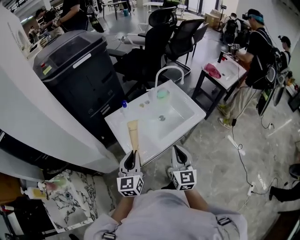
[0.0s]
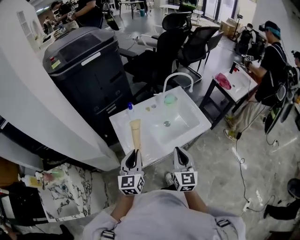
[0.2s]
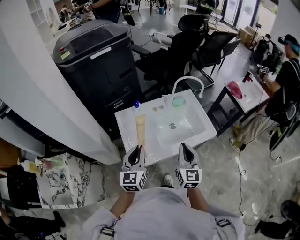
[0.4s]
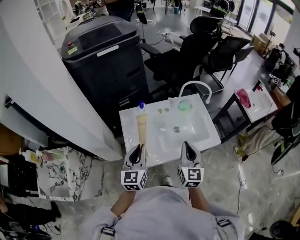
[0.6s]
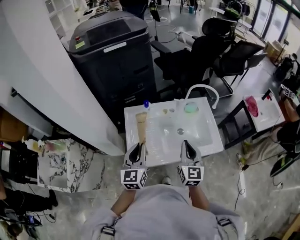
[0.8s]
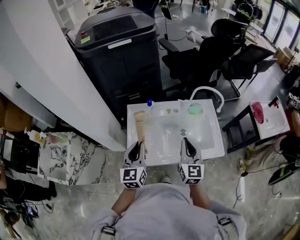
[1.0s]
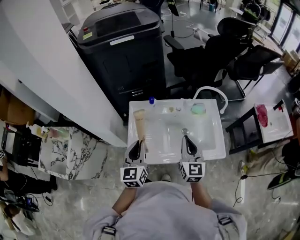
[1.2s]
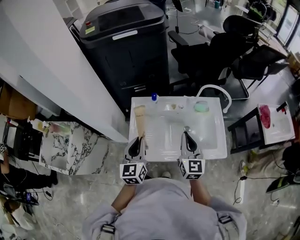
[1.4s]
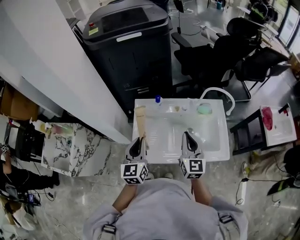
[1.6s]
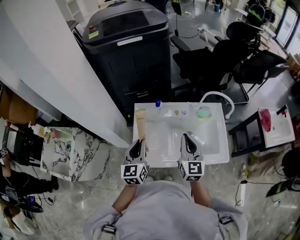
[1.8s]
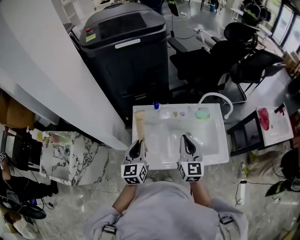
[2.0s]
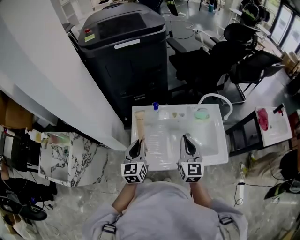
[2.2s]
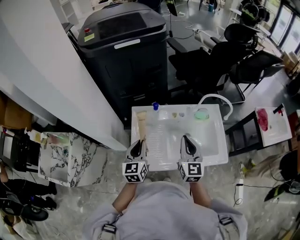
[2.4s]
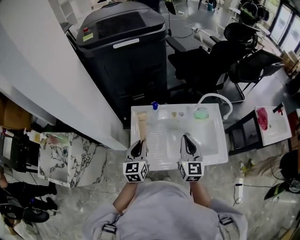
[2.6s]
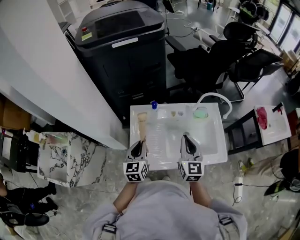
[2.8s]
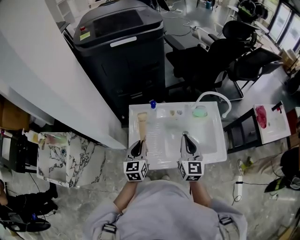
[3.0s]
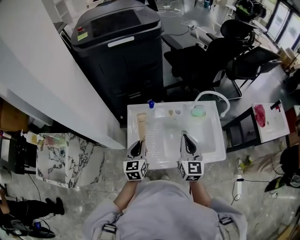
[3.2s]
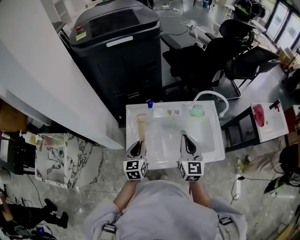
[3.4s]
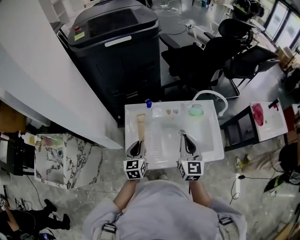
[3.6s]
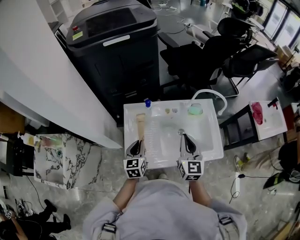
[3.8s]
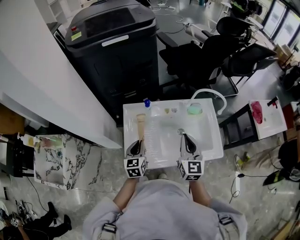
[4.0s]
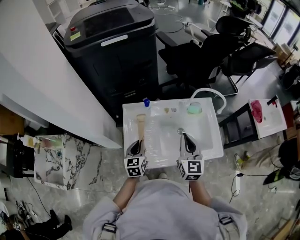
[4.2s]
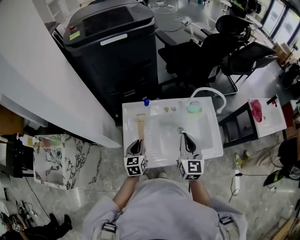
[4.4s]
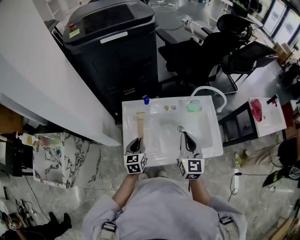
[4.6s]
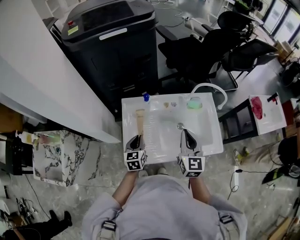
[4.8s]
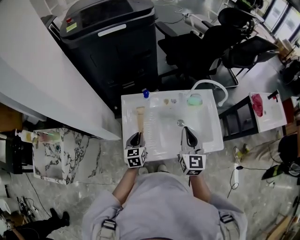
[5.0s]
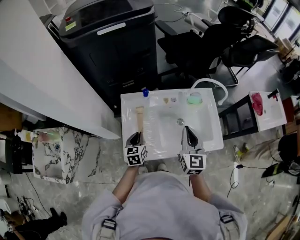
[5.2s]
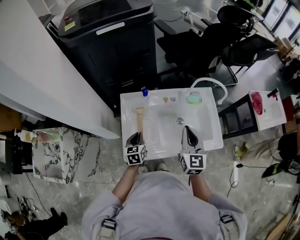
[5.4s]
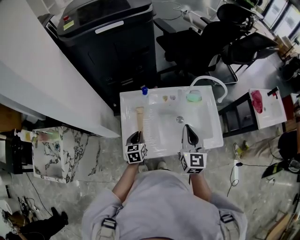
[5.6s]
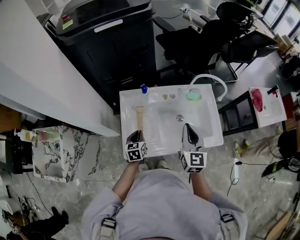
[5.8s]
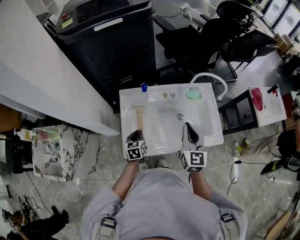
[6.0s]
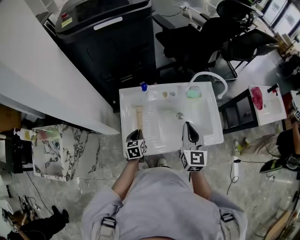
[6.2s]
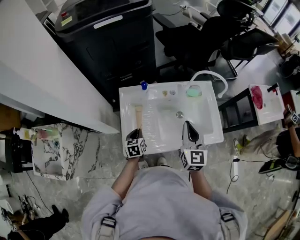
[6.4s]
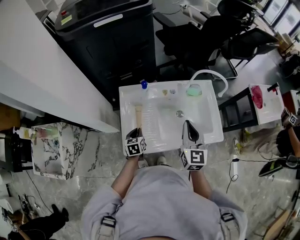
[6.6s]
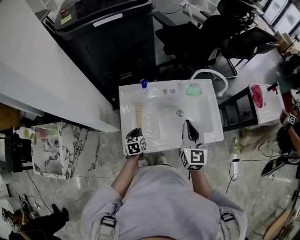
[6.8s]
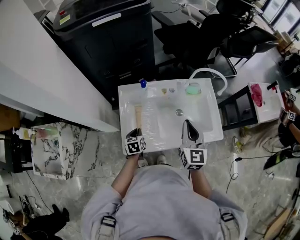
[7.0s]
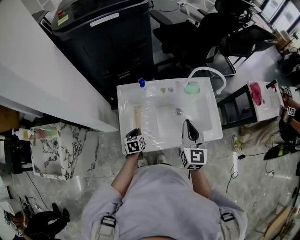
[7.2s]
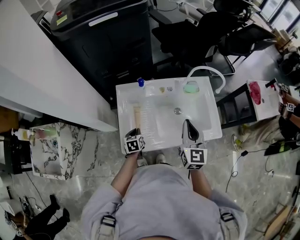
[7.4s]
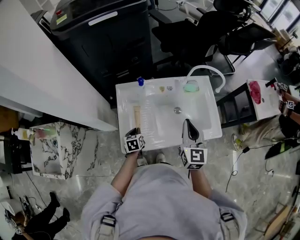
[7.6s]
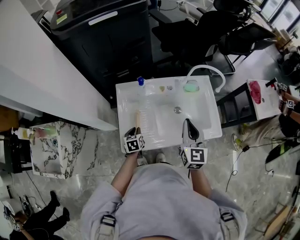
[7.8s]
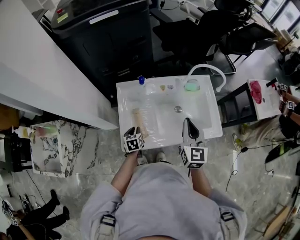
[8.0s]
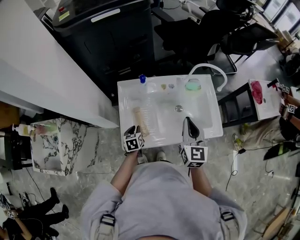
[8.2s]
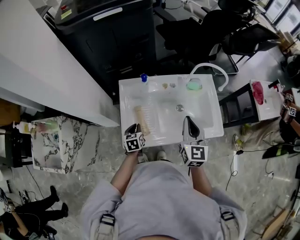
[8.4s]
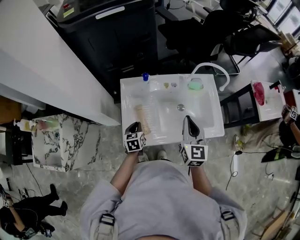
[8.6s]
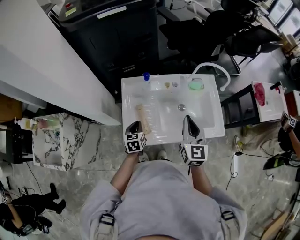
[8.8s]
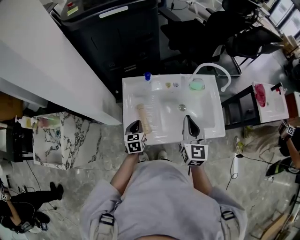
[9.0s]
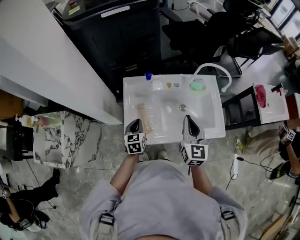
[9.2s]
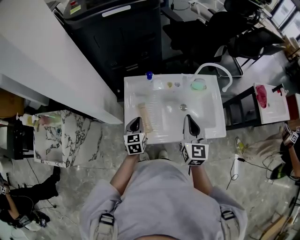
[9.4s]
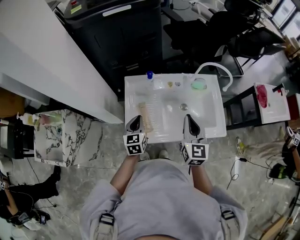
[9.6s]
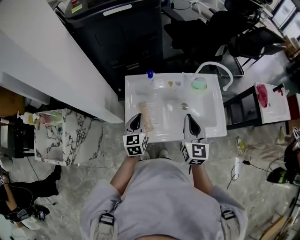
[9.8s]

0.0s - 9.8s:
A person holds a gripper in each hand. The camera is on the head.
0.0s - 1.4s: The left gripper shifts by some 10 cm, and turns by about 30 degrees. The right gripper shifts by about 20 cm, and rotates approximately 30 degrees.
1.4s - 2.8s: The left gripper is displaced downward and forward by roughly 10 cm.
2.8s - 4.2s: The left gripper travels downward by about 5 cm.
4.2s - 5.6s: The left gripper heads downward, covering about 5 cm.
5.6s - 7.0s: The left gripper heads downward, covering roughly 5 cm.
7.0s - 8.4s: The grippers stay close to where they were, moving slightly.
8.4s - 9.8s: The left gripper goes some 15 cm upward, and changes its angle by about 20 degrees.

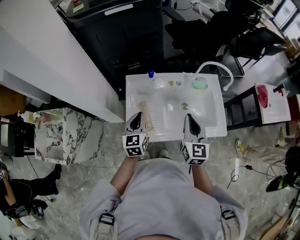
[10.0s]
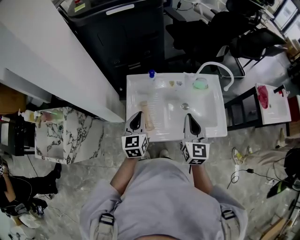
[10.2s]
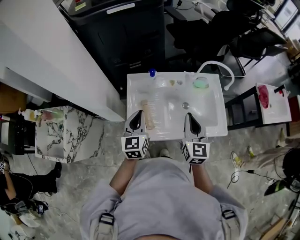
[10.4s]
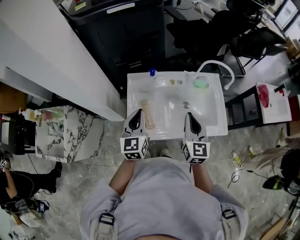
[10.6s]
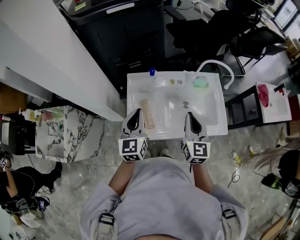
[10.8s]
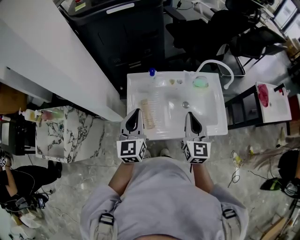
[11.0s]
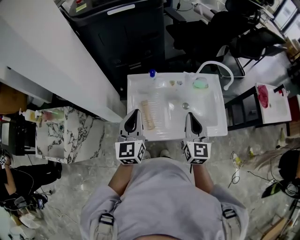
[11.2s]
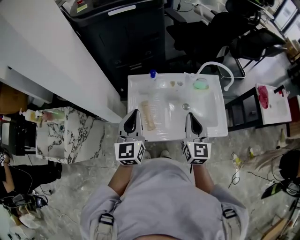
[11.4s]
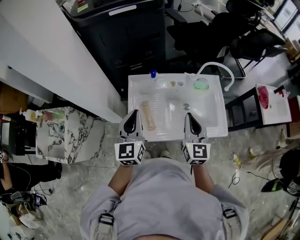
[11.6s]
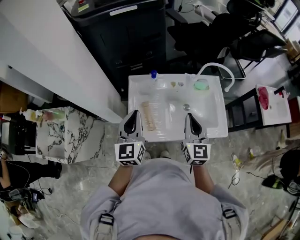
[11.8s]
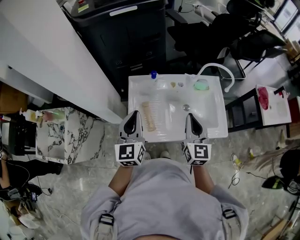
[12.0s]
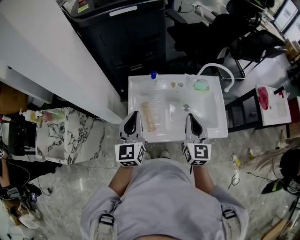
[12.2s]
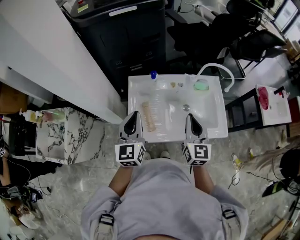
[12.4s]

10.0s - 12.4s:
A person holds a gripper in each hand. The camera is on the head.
10.0s - 11.2s: The left gripper is displaced upward by roughly 10 cm.
11.2s - 12.4s: Both grippers stay put.

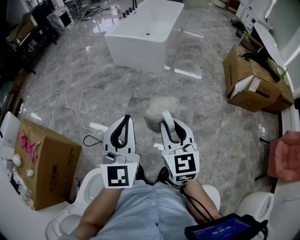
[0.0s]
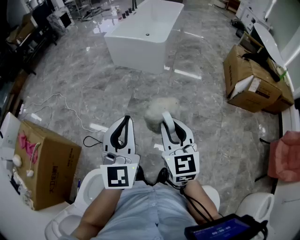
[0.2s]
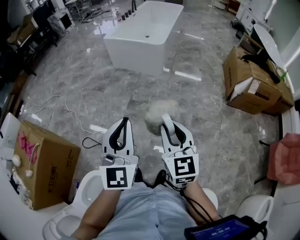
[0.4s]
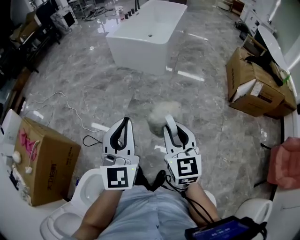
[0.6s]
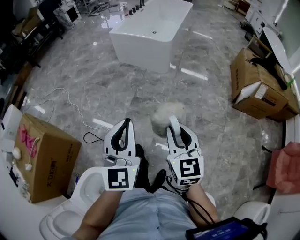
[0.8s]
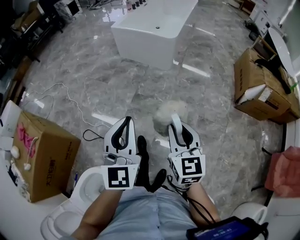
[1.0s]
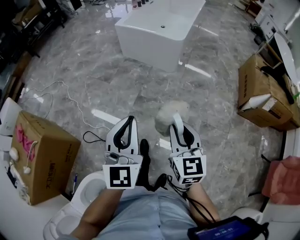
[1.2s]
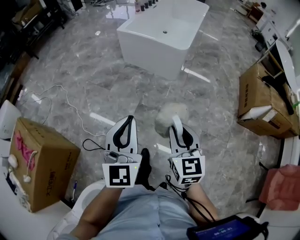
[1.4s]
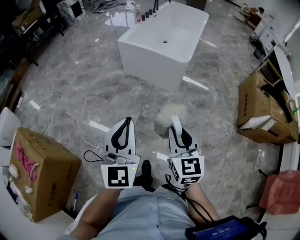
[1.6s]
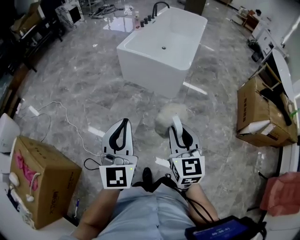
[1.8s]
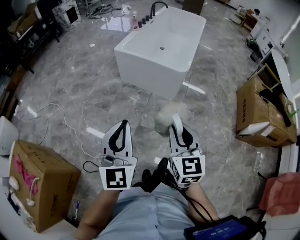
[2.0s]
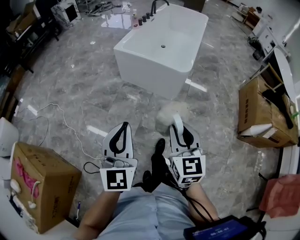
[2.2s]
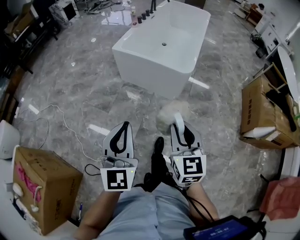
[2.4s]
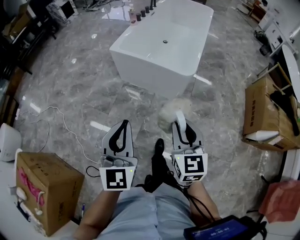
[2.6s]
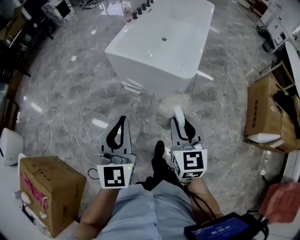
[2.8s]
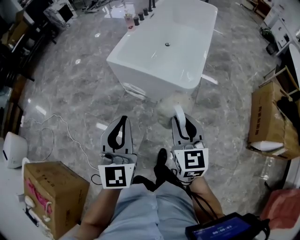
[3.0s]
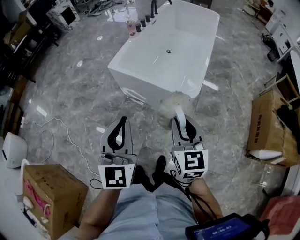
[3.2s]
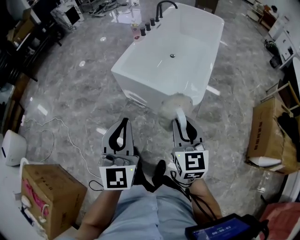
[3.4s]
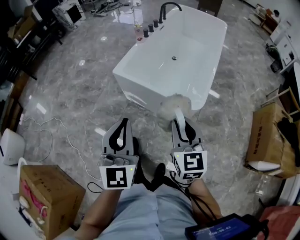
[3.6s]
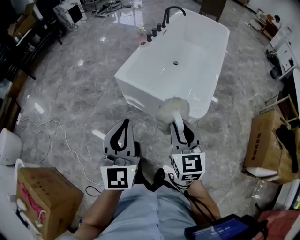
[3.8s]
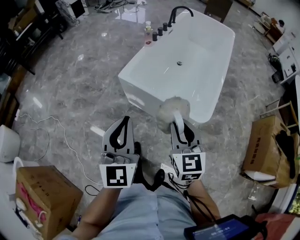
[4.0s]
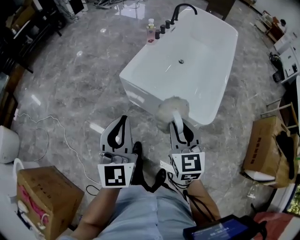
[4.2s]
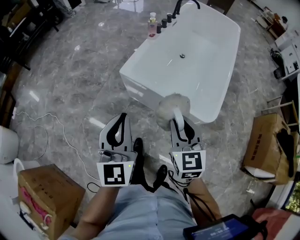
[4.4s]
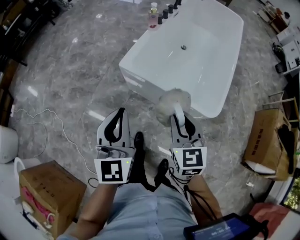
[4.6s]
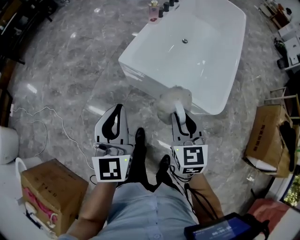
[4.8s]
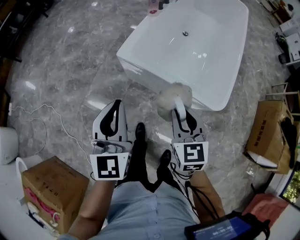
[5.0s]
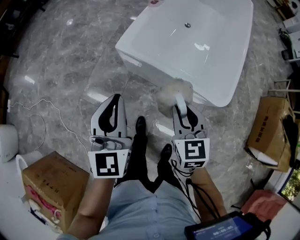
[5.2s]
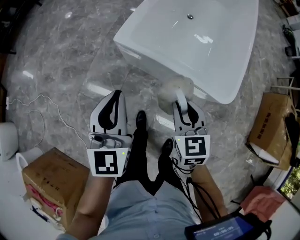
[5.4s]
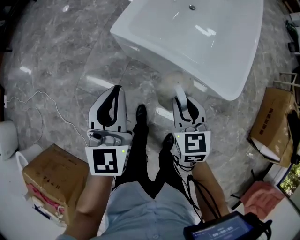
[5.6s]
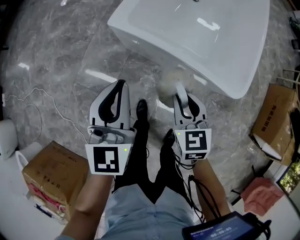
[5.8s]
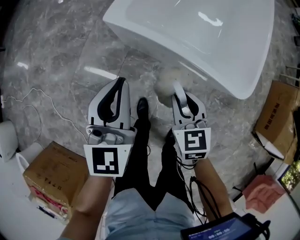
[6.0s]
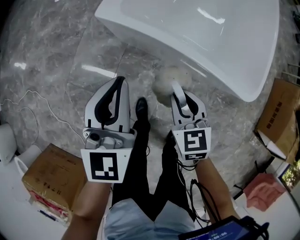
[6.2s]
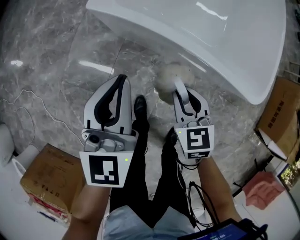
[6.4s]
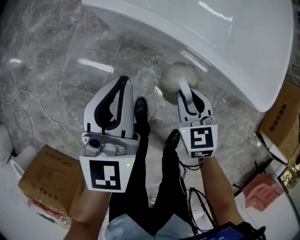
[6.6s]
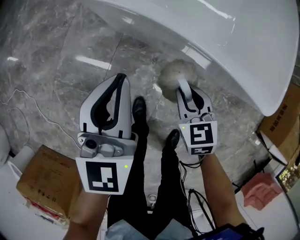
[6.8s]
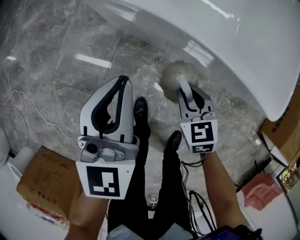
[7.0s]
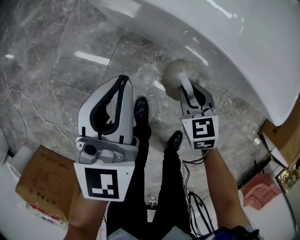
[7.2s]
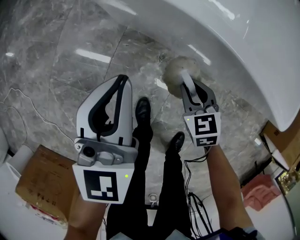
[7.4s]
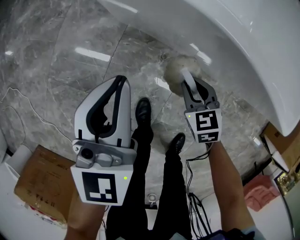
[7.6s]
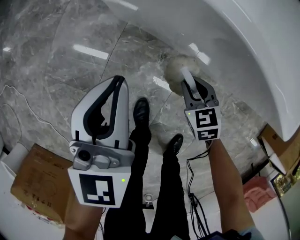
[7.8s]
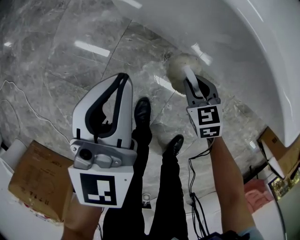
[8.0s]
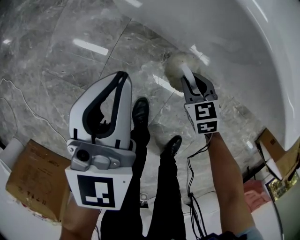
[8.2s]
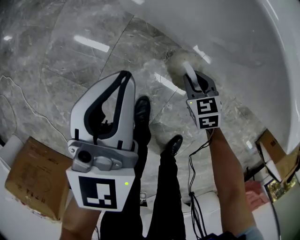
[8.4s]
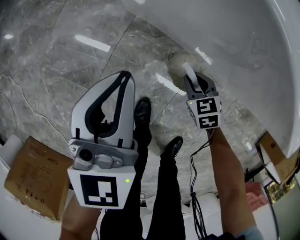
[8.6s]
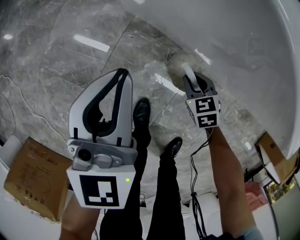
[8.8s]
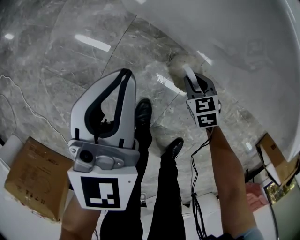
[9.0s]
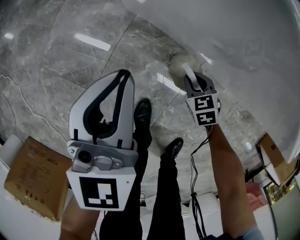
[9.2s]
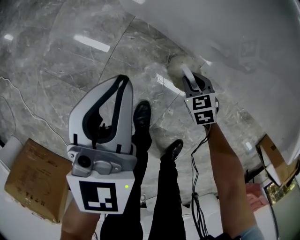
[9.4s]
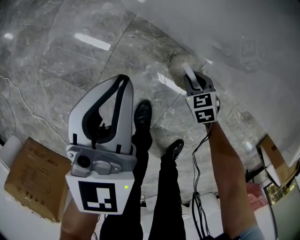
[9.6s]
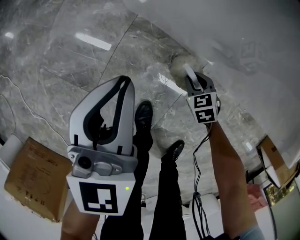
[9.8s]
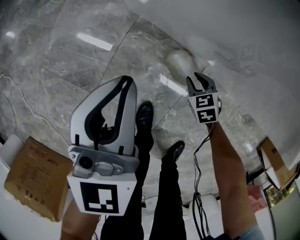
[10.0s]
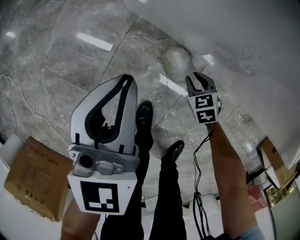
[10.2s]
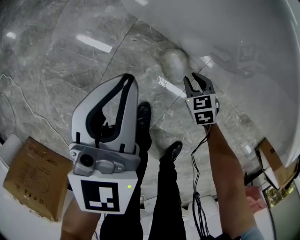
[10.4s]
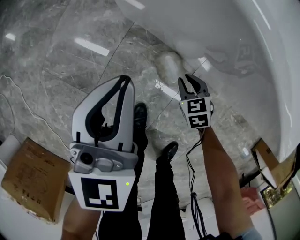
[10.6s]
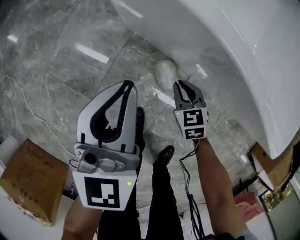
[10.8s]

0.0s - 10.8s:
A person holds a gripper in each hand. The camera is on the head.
0.0s - 1.6s: The two grippers go approximately 30 cm forward.
1.6s - 3.0s: Both grippers are carried forward, roughly 40 cm.
3.0s - 4.6s: Both grippers move forward and to the left, approximately 30 cm.
4.6s - 6.2s: The left gripper moves downward and forward, some 30 cm; the right gripper shifts roughly 30 cm downward, and changes its angle by roughly 20 degrees.
6.2s - 7.8s: Both grippers move downward, about 30 cm.
7.8s - 9.2s: The right gripper heads downward, covering roughly 15 cm. The left gripper is displaced downward by about 5 cm.
9.2s - 10.8s: The grippers both shift upward by about 10 cm.

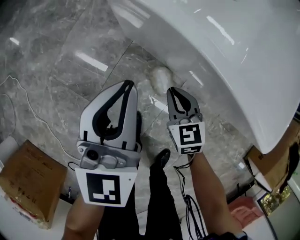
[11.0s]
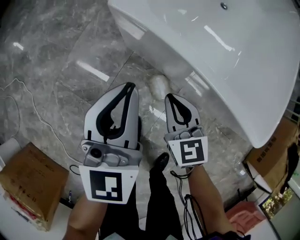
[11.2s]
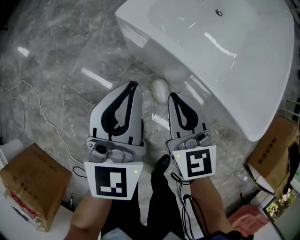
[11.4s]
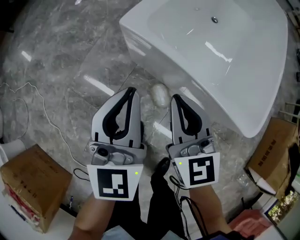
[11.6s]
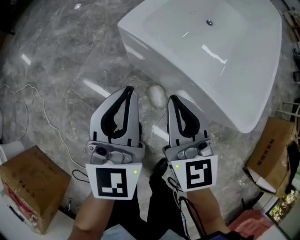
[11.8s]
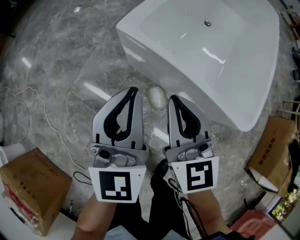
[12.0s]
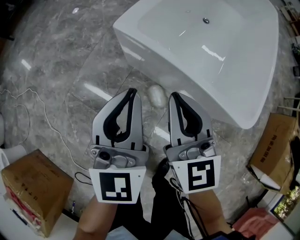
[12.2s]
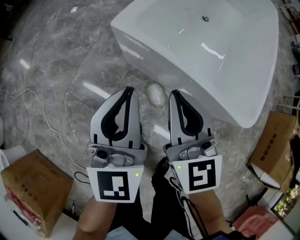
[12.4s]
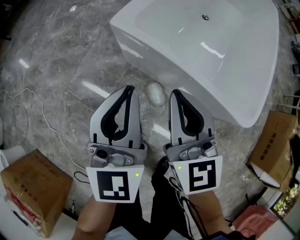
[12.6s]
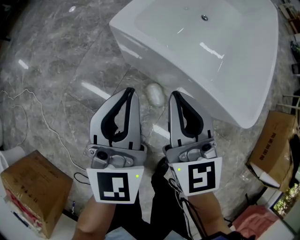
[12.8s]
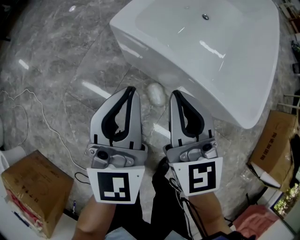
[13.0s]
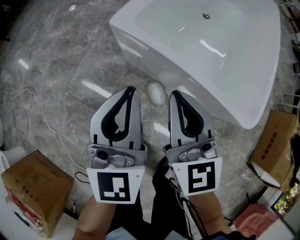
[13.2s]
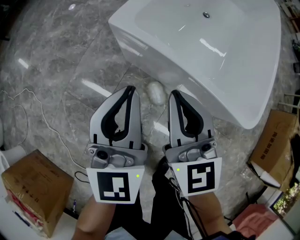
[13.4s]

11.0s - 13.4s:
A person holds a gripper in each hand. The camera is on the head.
11.0s - 12.2s: The right gripper goes some 35 cm upward, and tips its fingers upward by approximately 30 degrees. The left gripper moves upward and backward, about 25 cm.
12.2s - 13.4s: The grippers stay close to where they were, moving slightly.
